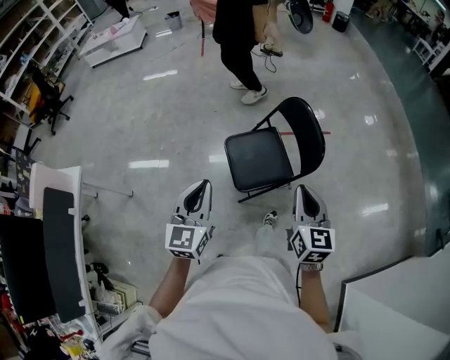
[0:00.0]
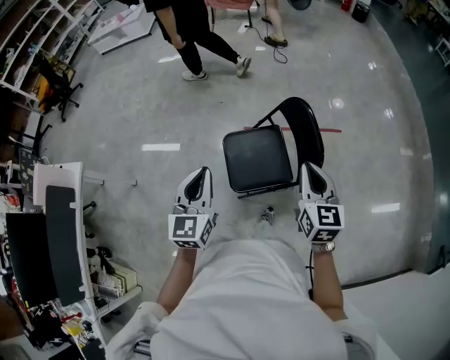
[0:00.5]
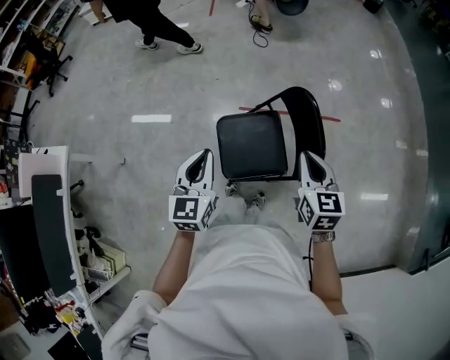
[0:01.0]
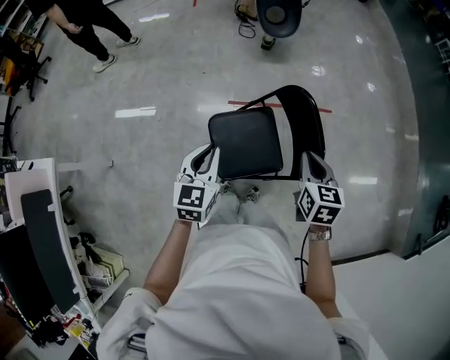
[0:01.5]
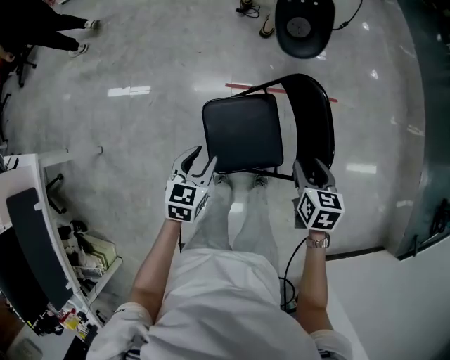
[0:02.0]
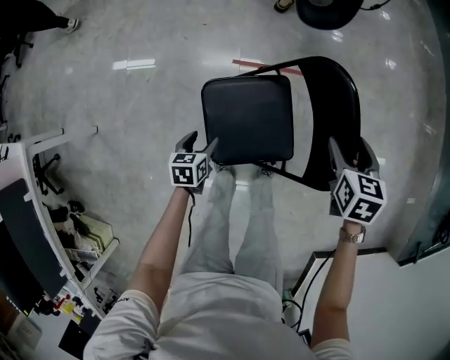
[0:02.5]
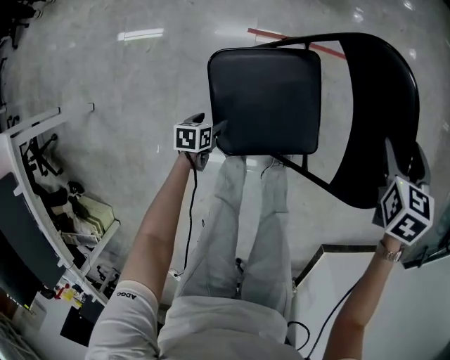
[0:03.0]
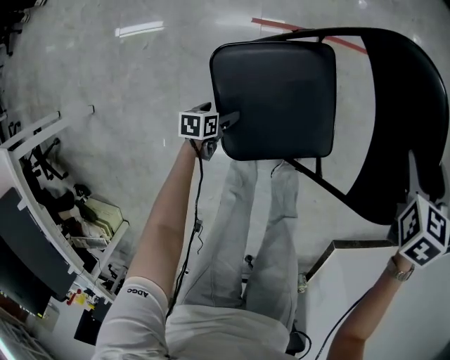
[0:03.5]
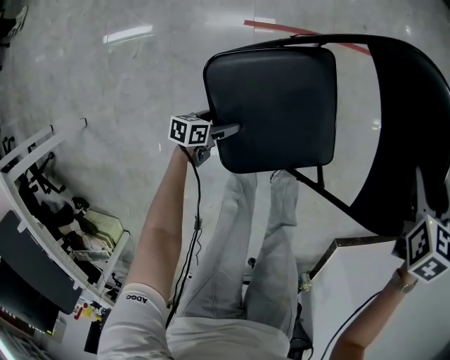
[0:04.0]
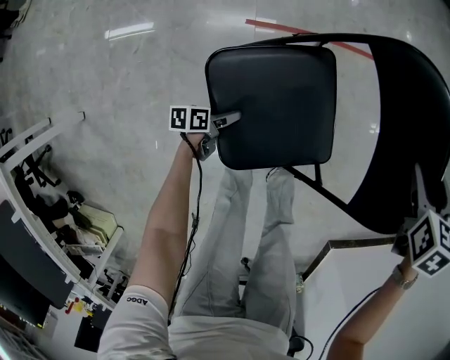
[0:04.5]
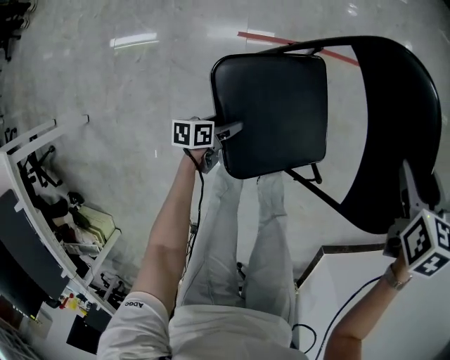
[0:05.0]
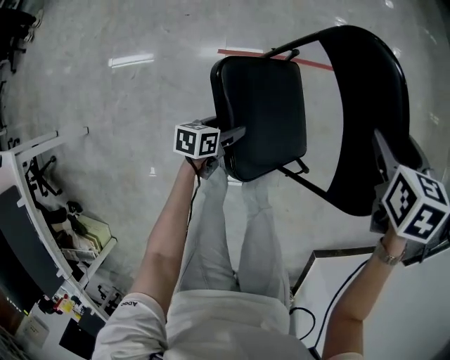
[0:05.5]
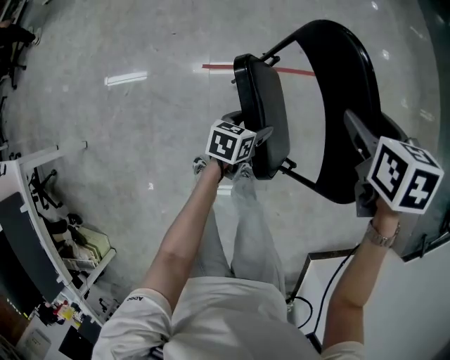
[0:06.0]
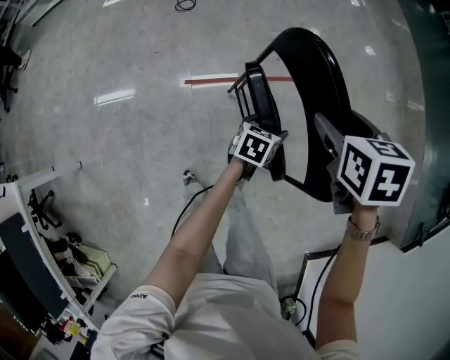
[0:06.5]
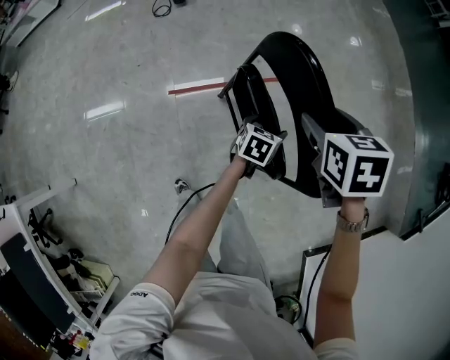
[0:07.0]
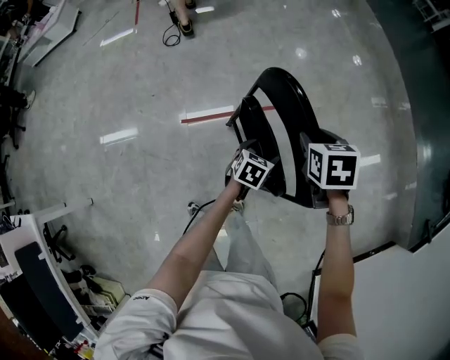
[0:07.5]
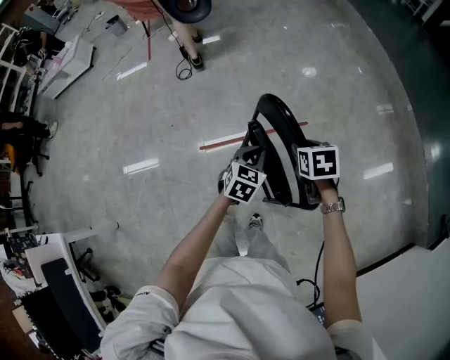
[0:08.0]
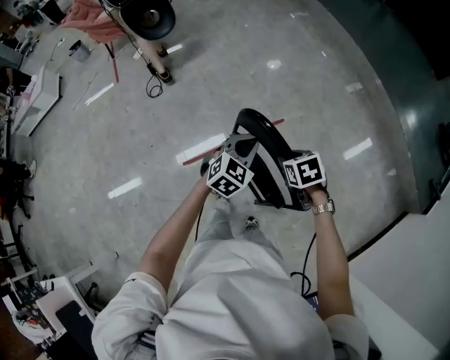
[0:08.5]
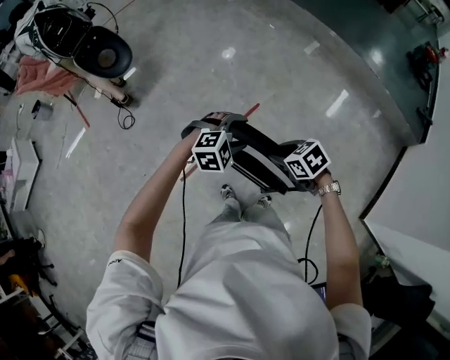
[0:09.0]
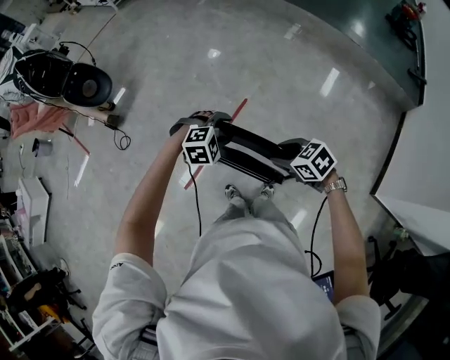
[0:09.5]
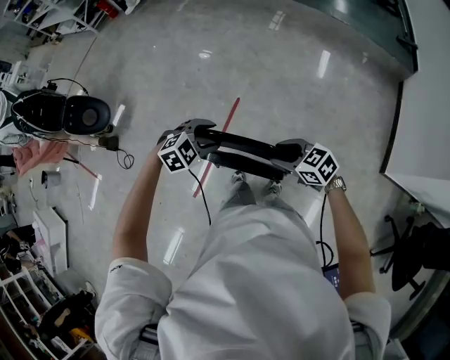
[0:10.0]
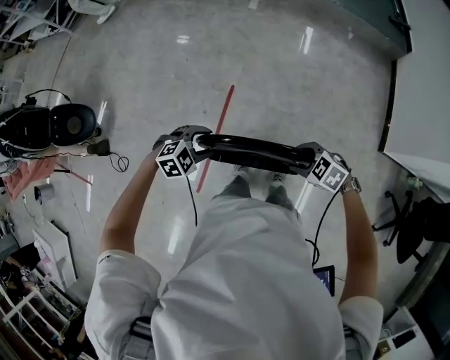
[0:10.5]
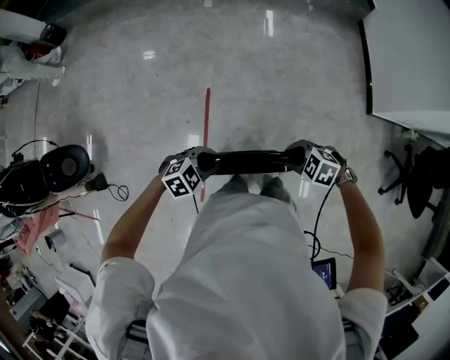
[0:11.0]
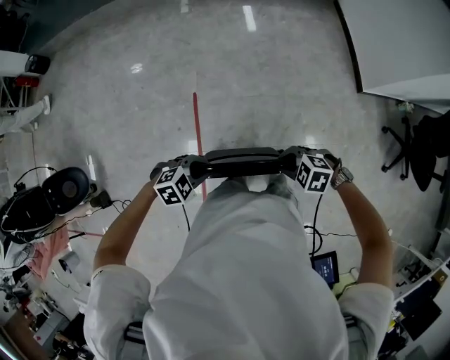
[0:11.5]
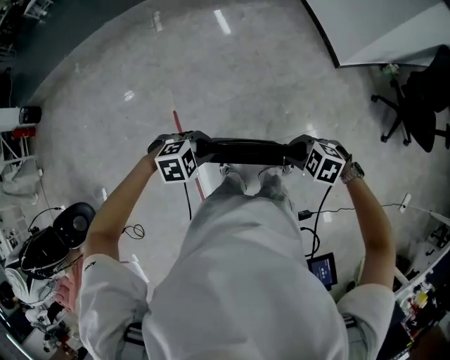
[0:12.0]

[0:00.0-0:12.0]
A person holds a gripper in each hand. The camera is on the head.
0:00.0 to 0:02.0: The left gripper shifts some 35 cm downward and forward, and changes its angle by approximately 30 degrees; the right gripper shifts about 35 cm forward and downward, tilts its fingers about 30 degrees downward, and opens up.
0:02.0 to 0:04.0: The left gripper heads downward, covering roughly 50 cm, turns by roughly 50 degrees, and opens up, while the right gripper changes place by some 25 cm, rotates roughly 30 degrees, and opens its fingers.
0:04.0 to 0:06.0: The left gripper moves roughly 50 cm, and turns by some 20 degrees; the right gripper shifts approximately 20 cm upward, and swivels roughly 20 degrees.
0:06.0 to 0:08.0: The left gripper is displaced upward, forward and to the right by approximately 25 cm, swivels about 40 degrees, and closes its fingers; the right gripper shifts about 10 cm to the right, and closes.
0:08.0 to 0:10.0: The right gripper ends up about 15 cm from where it was, and changes its angle by about 30 degrees. Meanwhile the left gripper ends up approximately 5 cm from where it was, rotates some 90 degrees, and opens.
0:10.0 to 0:12.0: The right gripper ends up approximately 15 cm from where it was, changes its angle by roughly 30 degrees, and closes up. Meanwhile the left gripper moves about 15 cm, changes its angle by about 50 degrees, and closes up.

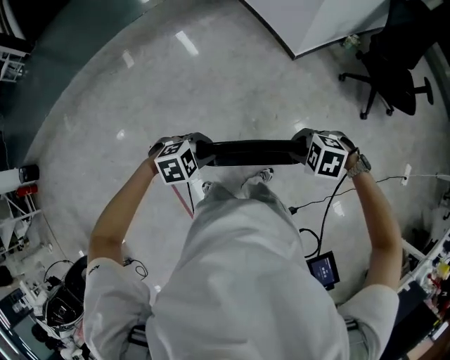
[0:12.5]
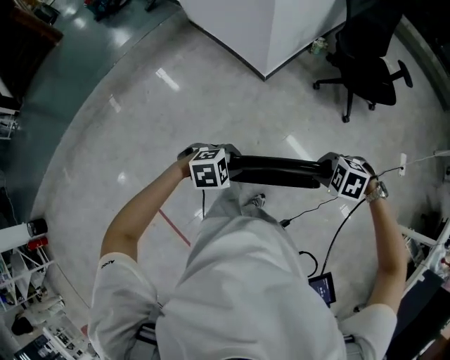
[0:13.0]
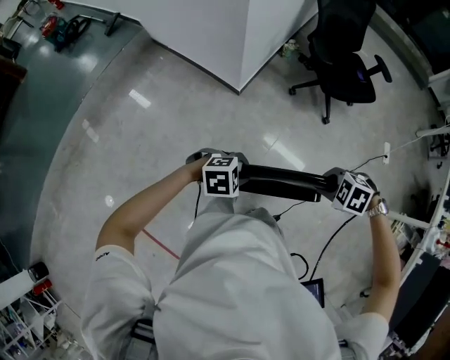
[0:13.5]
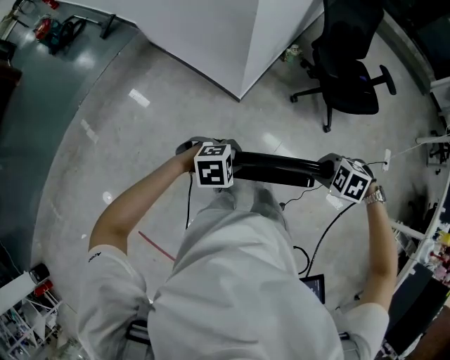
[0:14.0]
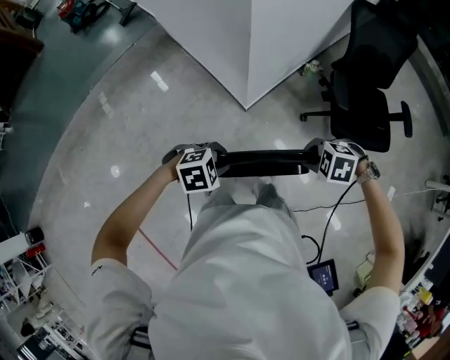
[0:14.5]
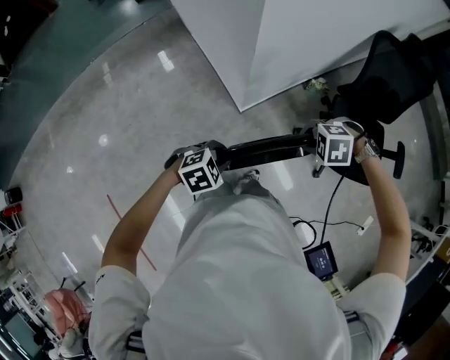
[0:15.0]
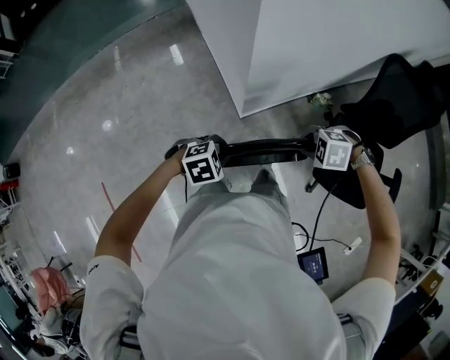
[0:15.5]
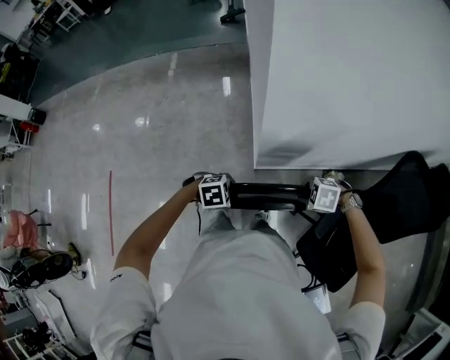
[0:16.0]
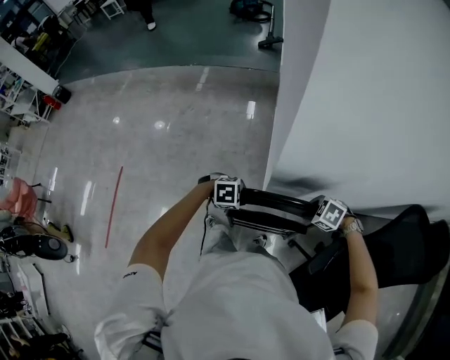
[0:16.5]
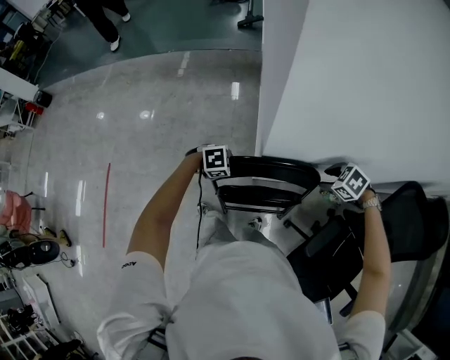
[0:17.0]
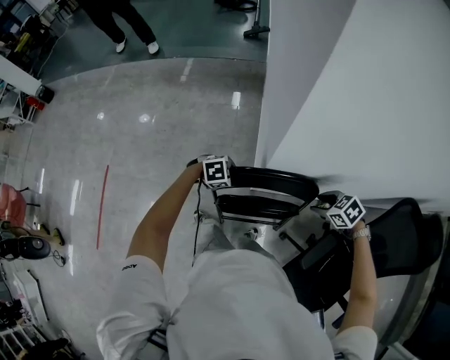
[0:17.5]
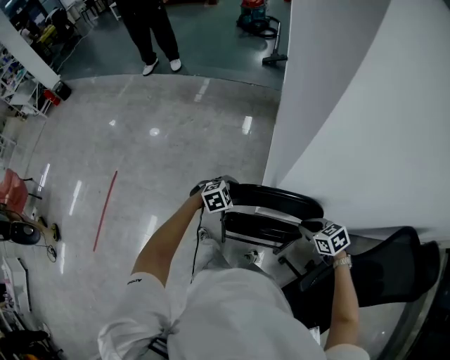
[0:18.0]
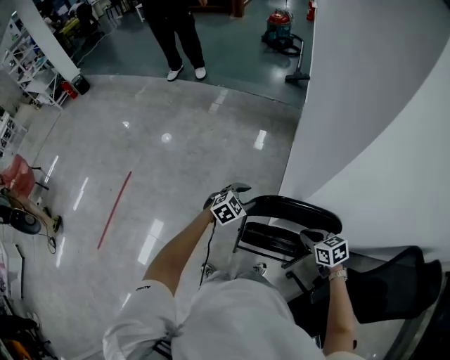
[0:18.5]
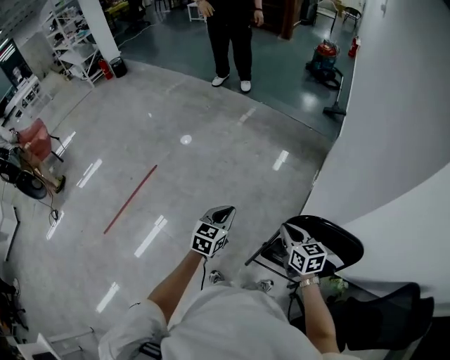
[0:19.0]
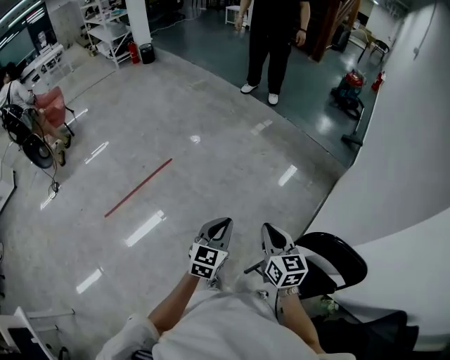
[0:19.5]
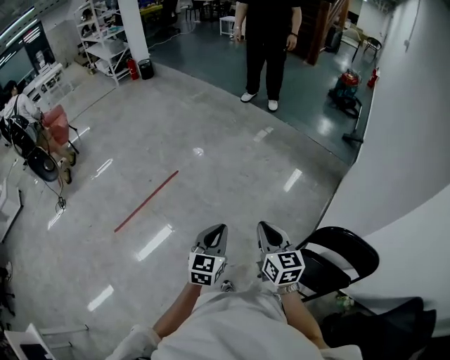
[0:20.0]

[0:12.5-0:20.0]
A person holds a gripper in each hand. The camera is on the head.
0:12.5 to 0:14.5: The two grippers travel together, approximately 60 cm.
0:14.5 to 0:16.5: The right gripper ends up about 40 cm from where it was, and swivels about 30 degrees. The left gripper moves approximately 30 cm, and changes its angle by roughly 40 degrees.
0:16.5 to 0:18.0: The left gripper moves about 10 cm, and changes its angle by roughly 30 degrees. Meanwhile the right gripper rotates roughly 30 degrees.
0:18.0 to 0:20.0: Both grippers are carried approximately 50 cm. The right gripper points its fingers about 40 degrees further upward. Meanwhile the left gripper tilts its fingers approximately 40 degrees upward, and closes its fingers.

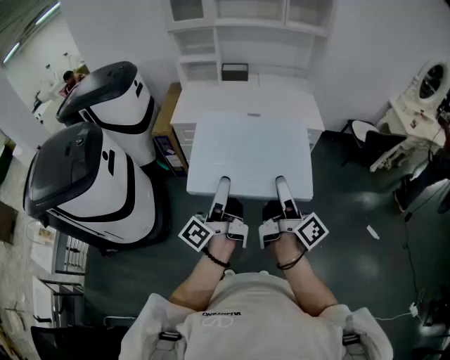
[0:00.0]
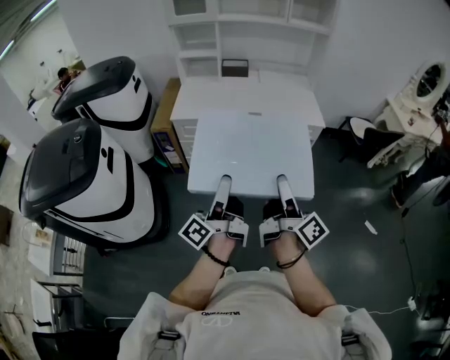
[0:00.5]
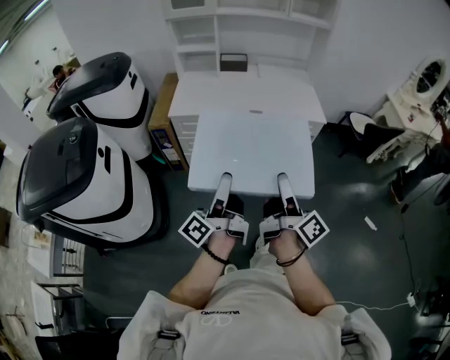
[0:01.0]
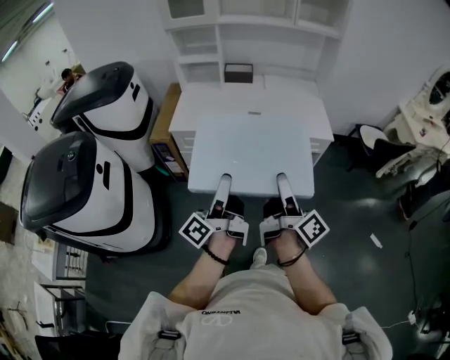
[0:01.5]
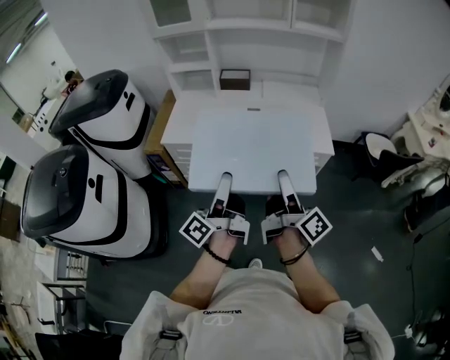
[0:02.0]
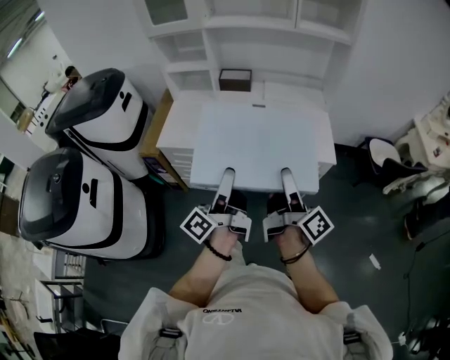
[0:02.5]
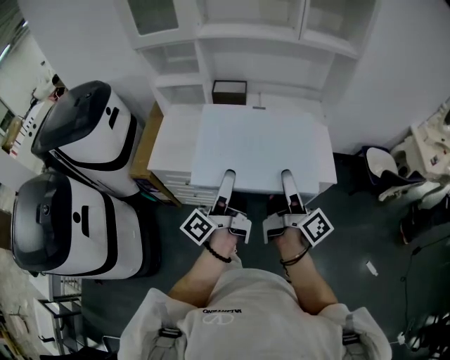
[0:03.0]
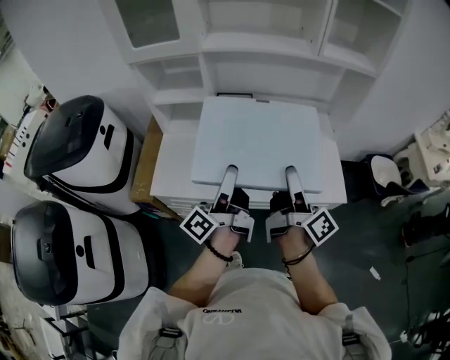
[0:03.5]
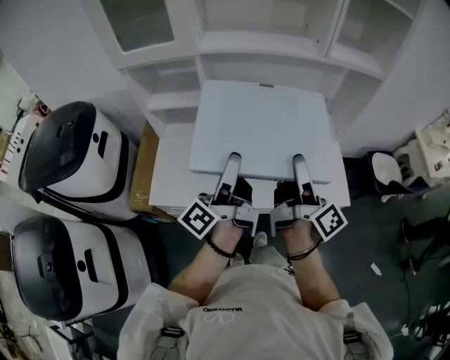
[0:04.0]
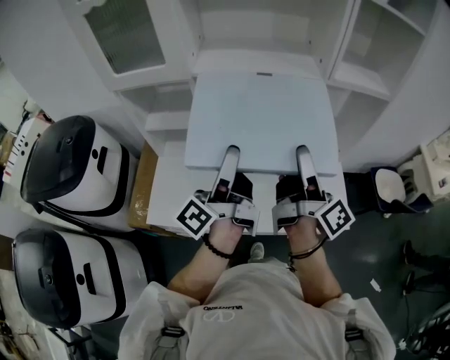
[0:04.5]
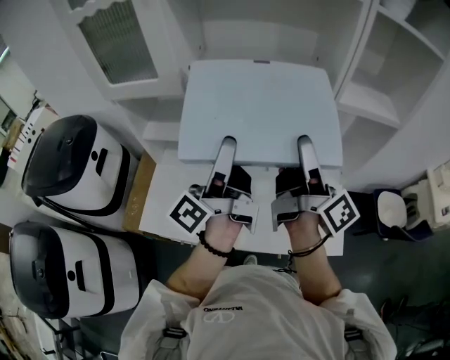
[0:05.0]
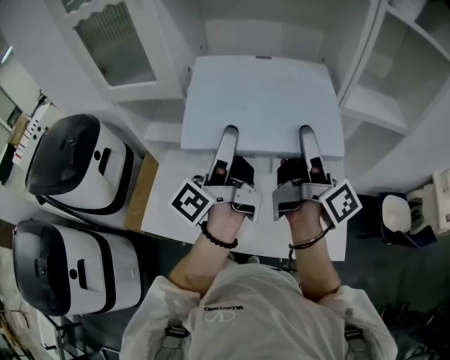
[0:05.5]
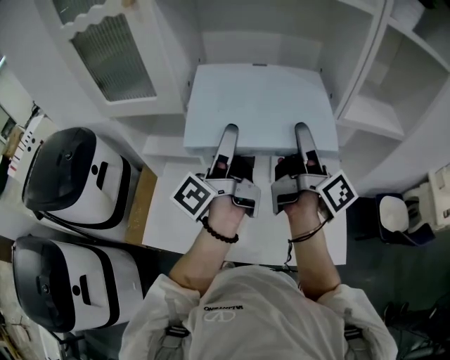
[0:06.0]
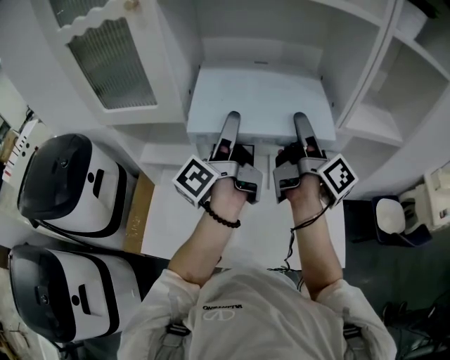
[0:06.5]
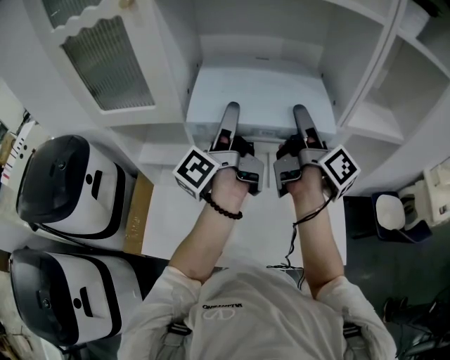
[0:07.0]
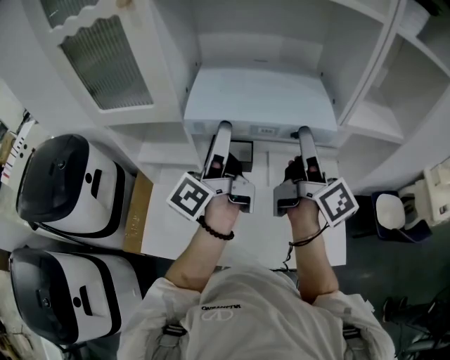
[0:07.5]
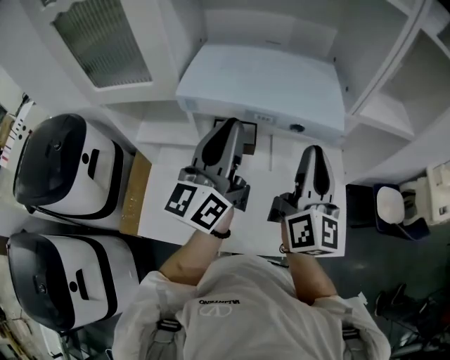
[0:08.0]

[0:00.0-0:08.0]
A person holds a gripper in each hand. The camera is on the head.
0:00.0 to 0:02.0: Both grippers move forward, some 20 cm.
0:02.0 to 0:04.0: The two grippers go roughly 40 cm forward.
0:04.0 to 0:06.0: The left gripper moves forward and upward, approximately 25 cm; the right gripper travels forward by approximately 25 cm.
0:06.0 to 0:08.0: The right gripper rotates around the line of its fingers by approximately 60 degrees, counterclockwise from behind, and closes. The left gripper moves roughly 5 cm forward and comes back, twists approximately 50 degrees clockwise, seen from behind, and closes its fingers.
